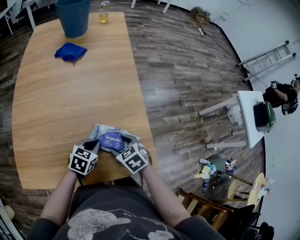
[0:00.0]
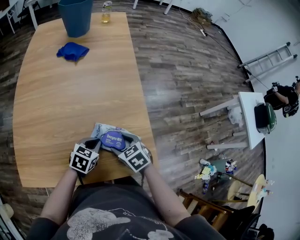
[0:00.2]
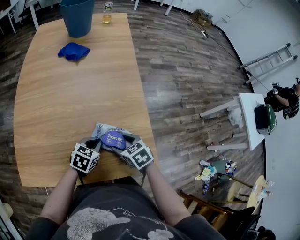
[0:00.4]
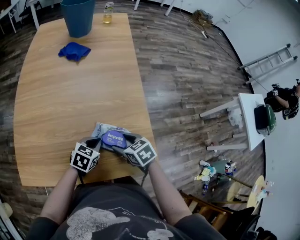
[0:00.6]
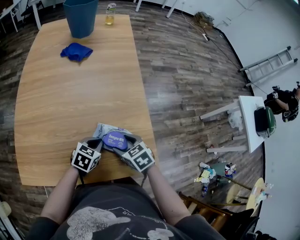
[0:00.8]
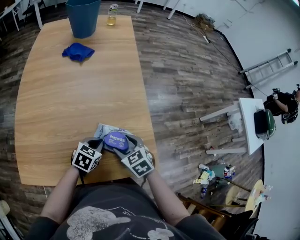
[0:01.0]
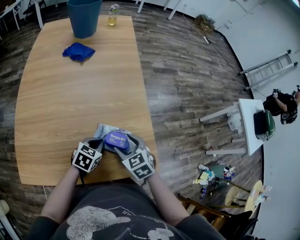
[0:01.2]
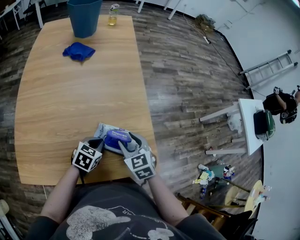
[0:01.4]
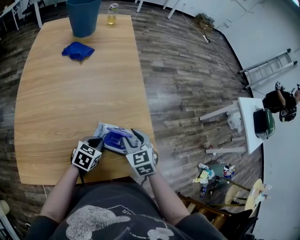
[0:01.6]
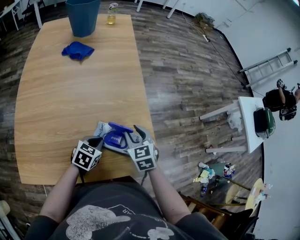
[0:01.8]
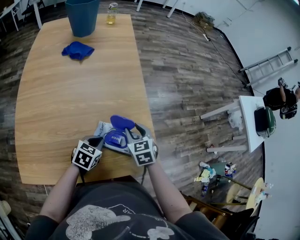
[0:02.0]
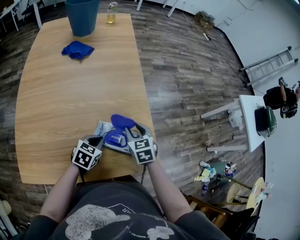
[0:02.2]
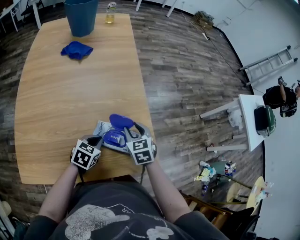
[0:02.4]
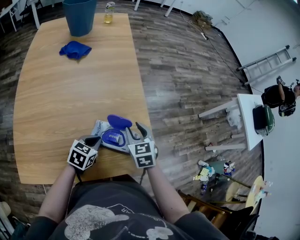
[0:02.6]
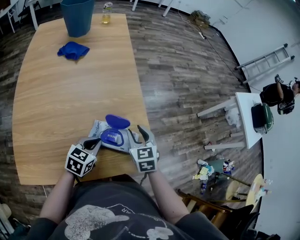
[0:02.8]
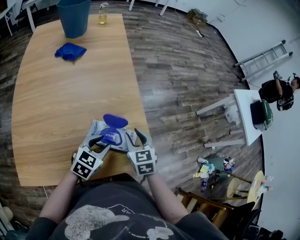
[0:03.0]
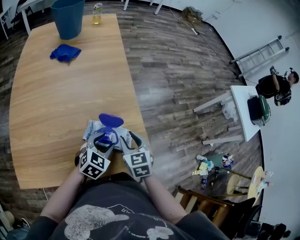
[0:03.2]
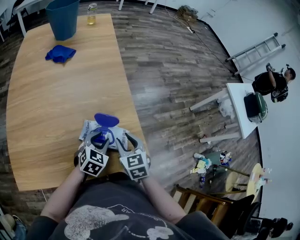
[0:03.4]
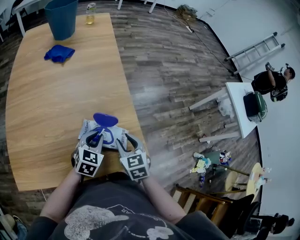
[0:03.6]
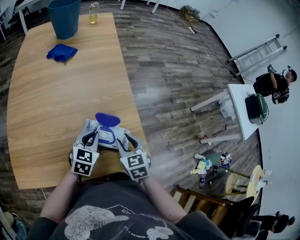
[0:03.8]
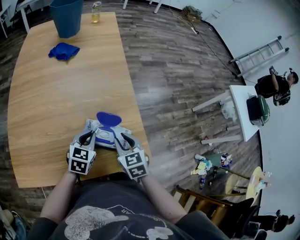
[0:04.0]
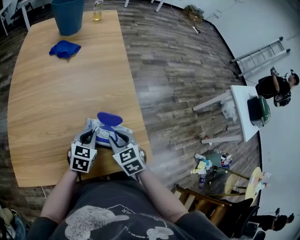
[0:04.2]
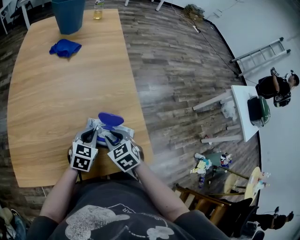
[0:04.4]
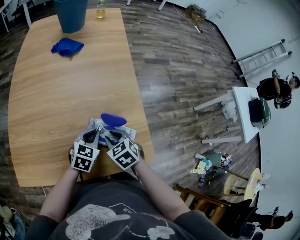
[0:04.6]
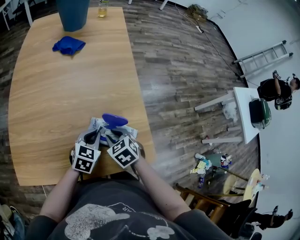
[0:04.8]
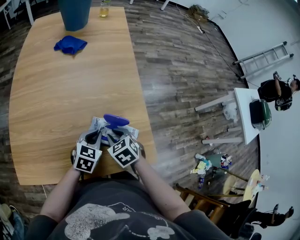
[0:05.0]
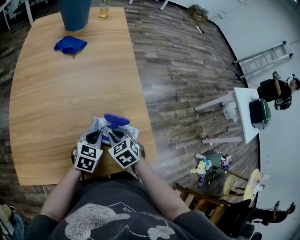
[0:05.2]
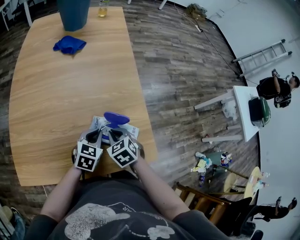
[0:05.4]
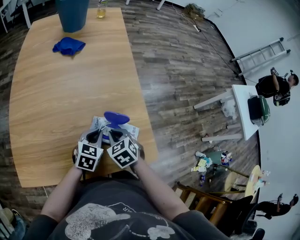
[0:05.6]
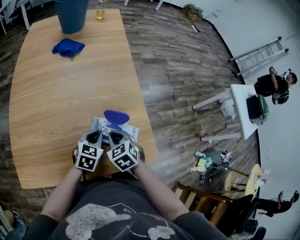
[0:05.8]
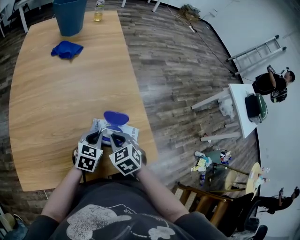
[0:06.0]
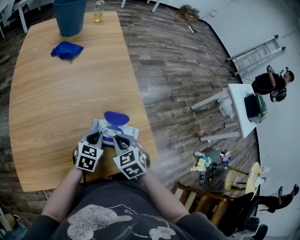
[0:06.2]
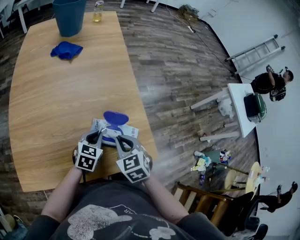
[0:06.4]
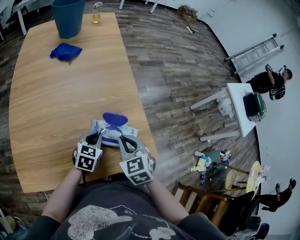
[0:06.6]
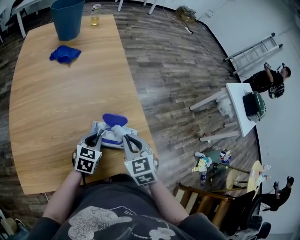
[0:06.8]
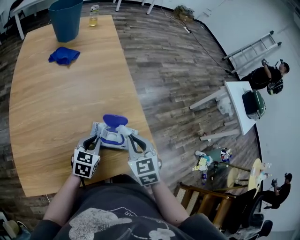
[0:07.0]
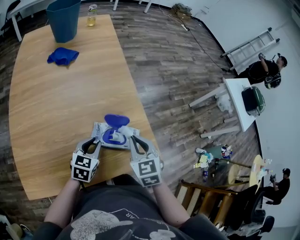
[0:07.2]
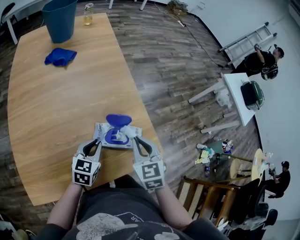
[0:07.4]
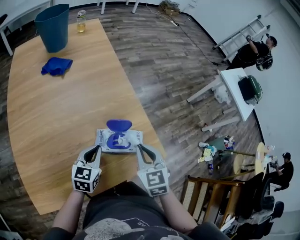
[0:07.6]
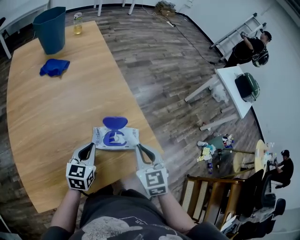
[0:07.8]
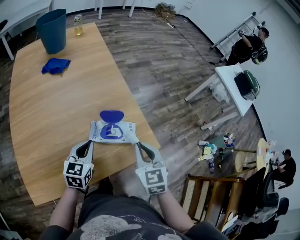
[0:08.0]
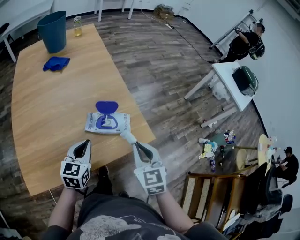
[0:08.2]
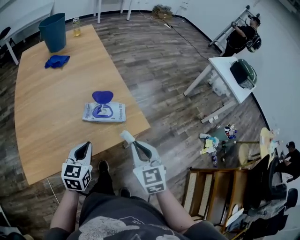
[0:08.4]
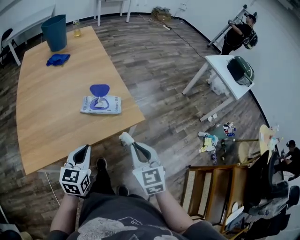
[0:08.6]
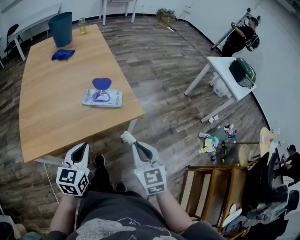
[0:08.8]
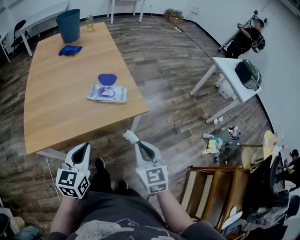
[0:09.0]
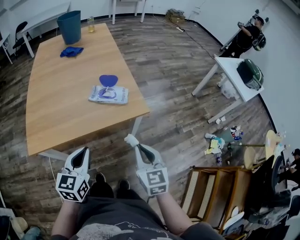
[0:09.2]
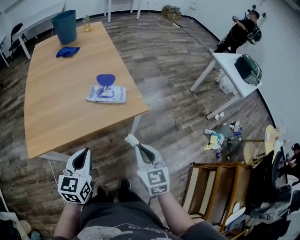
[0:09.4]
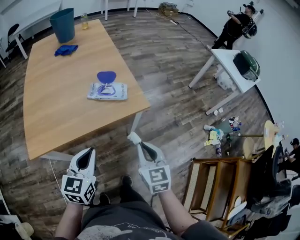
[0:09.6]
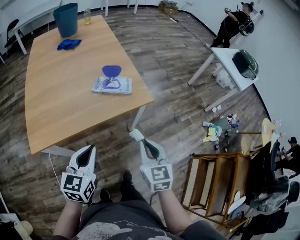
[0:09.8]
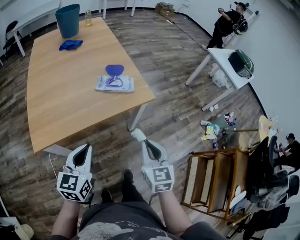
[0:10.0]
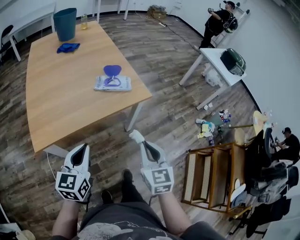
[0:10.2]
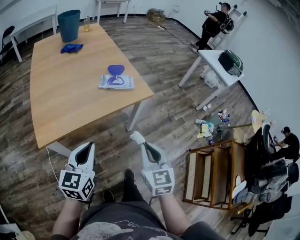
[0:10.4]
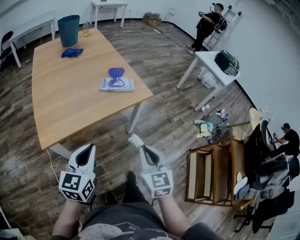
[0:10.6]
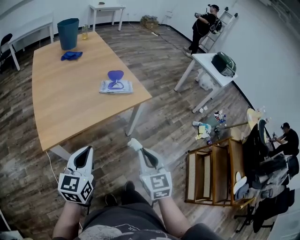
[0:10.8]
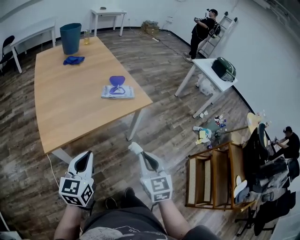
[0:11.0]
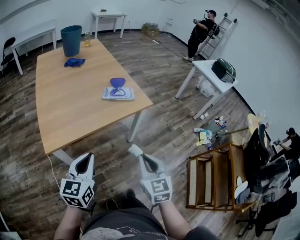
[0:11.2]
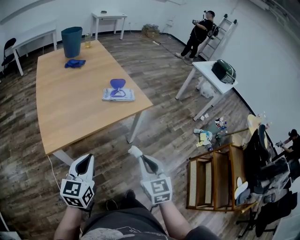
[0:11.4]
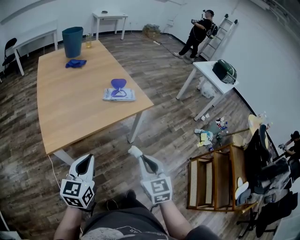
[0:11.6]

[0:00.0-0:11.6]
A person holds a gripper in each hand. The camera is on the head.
0:00.0 to 0:01.4: The right gripper travels upward by some 5 cm, and changes its angle by some 20 degrees.
0:01.4 to 0:02.8: The right gripper changes place by about 5 cm.
0:02.8 to 0:04.4: The left gripper opens, then closes again, while the right gripper is displaced to the left by approximately 10 cm, and swivels some 20 degrees.
0:04.4 to 0:05.8: The grippers stay close to where they were, moving slightly.
0:05.8 to 0:07.2: The right gripper travels upward and to the right by some 10 cm, and changes its angle by some 20 degrees.
0:07.2 to 0:08.8: The right gripper shifts approximately 25 cm backward and to the right, while the left gripper shifts some 25 cm backward and upward, and closes.
0:08.8 to 0:10.2: Both grippers travel together backward and to the left, some 15 cm.
0:10.2 to 0:11.6: The grippers both shift backward by some 5 cm.

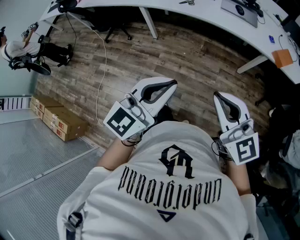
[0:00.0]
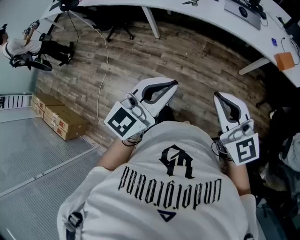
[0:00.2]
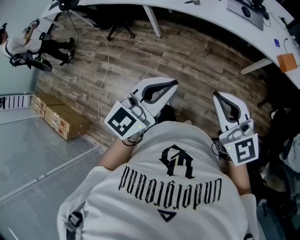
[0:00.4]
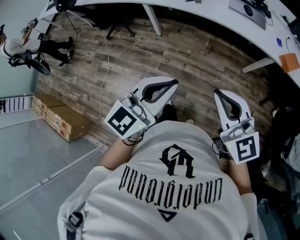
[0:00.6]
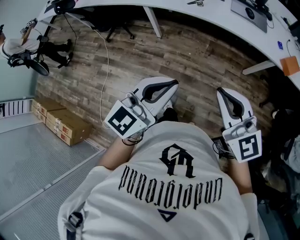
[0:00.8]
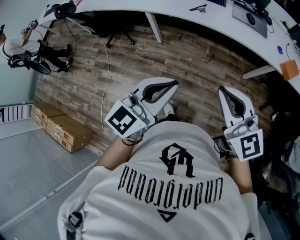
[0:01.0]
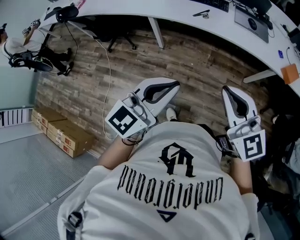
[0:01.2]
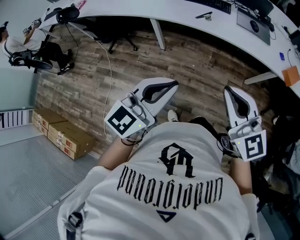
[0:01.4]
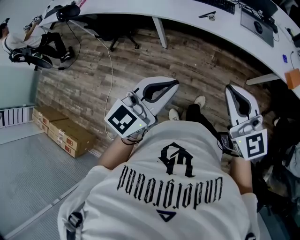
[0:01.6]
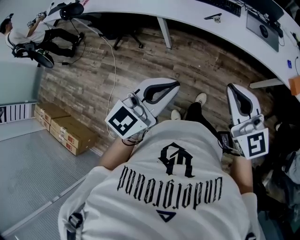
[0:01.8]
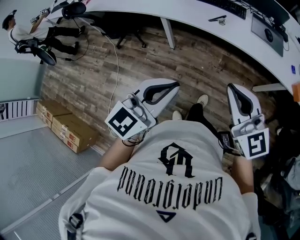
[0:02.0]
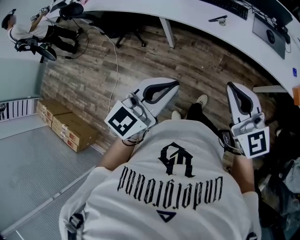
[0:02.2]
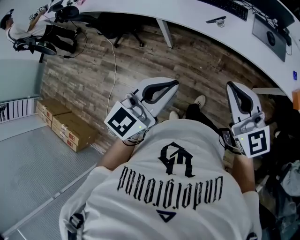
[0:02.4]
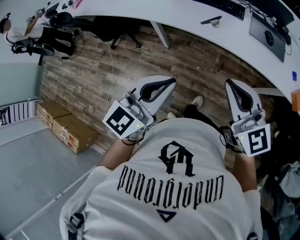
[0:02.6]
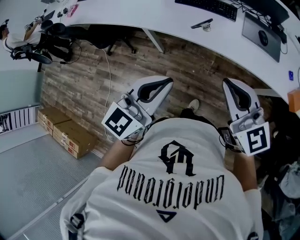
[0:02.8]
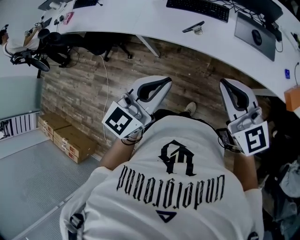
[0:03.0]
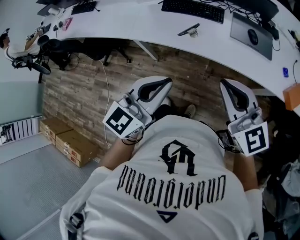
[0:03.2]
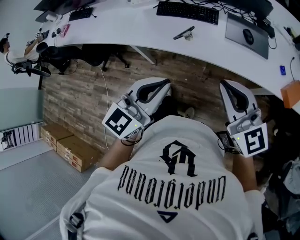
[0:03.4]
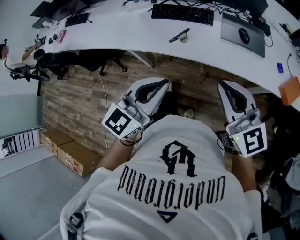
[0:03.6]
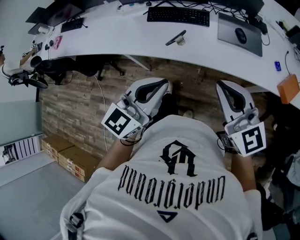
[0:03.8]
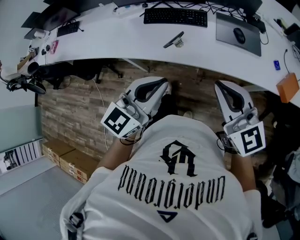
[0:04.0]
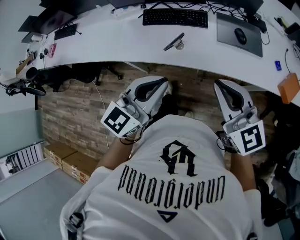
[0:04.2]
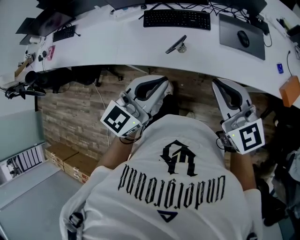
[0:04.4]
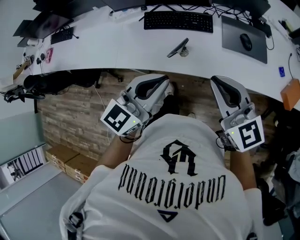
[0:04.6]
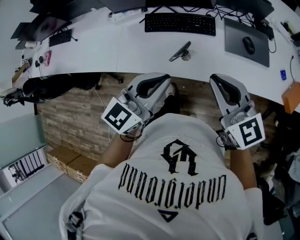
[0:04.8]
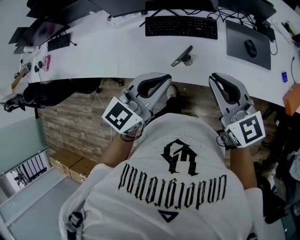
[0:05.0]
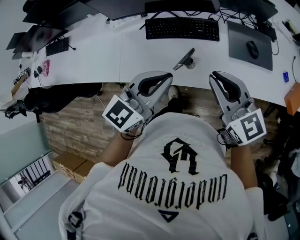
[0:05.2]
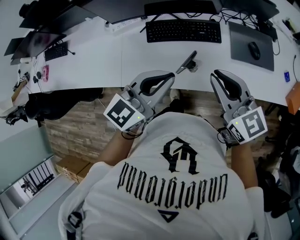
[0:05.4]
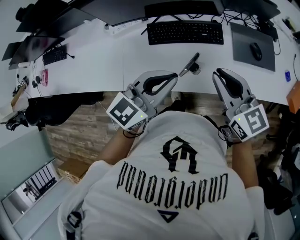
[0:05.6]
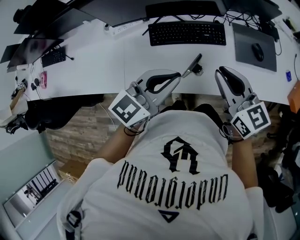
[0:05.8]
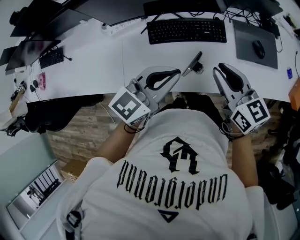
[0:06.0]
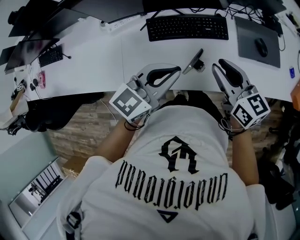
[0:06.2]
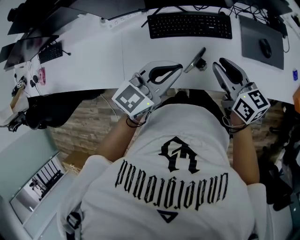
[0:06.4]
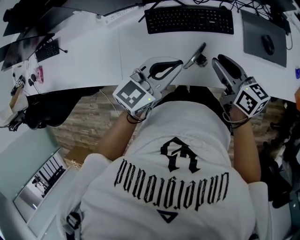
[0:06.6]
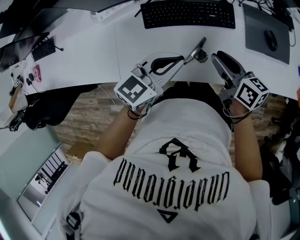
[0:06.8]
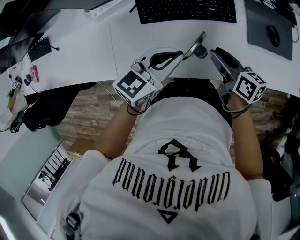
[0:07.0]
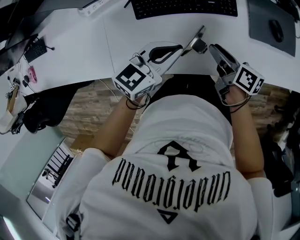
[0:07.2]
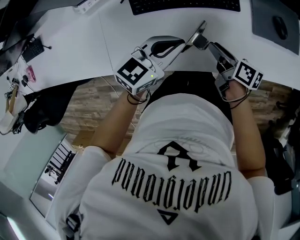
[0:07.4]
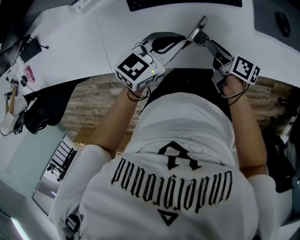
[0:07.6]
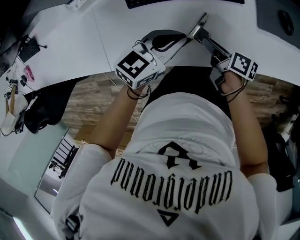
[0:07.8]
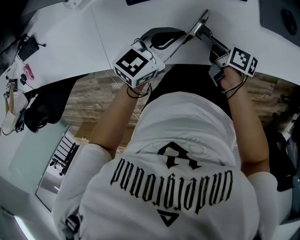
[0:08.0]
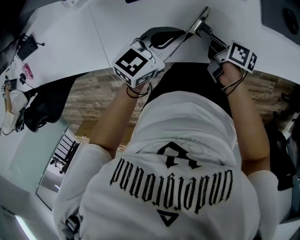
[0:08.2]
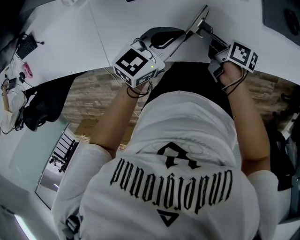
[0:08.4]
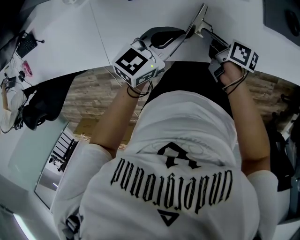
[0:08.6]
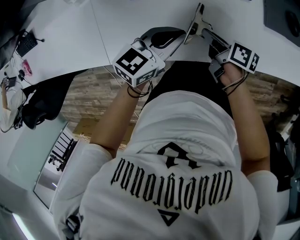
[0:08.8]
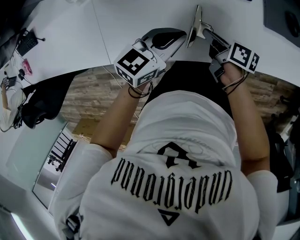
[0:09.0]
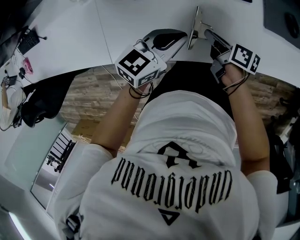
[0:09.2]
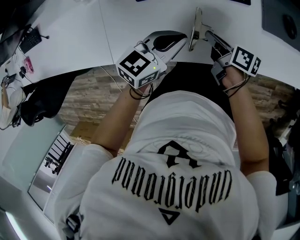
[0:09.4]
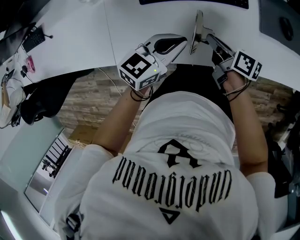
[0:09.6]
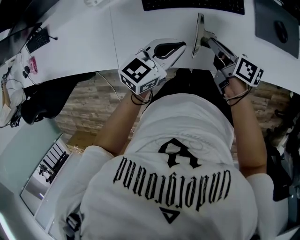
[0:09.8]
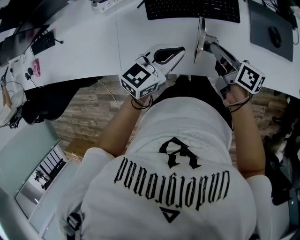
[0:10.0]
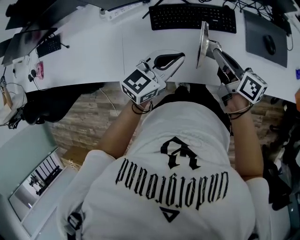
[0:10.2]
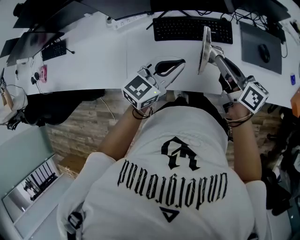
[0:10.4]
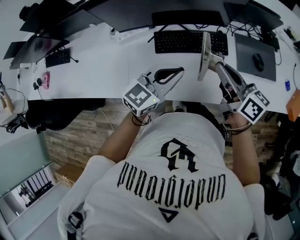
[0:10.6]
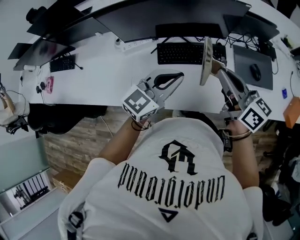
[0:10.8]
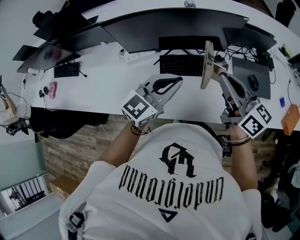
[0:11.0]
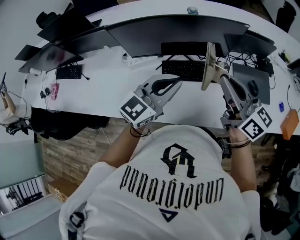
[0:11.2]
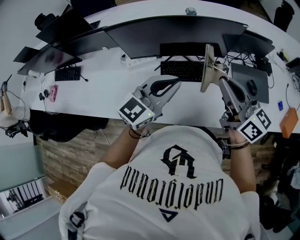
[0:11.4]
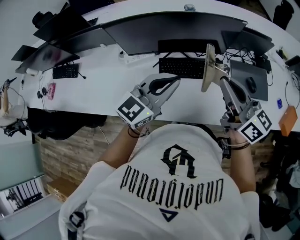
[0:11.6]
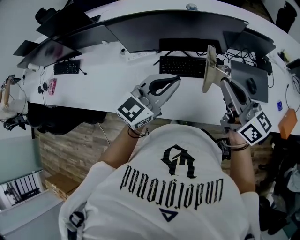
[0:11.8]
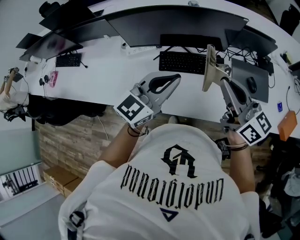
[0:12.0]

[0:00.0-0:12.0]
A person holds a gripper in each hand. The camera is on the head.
0:00.0 to 0:01.6: The left gripper is displaced to the left and forward by roughly 25 cm; the right gripper is displaced forward and to the left by about 25 cm.
0:01.6 to 0:03.0: Both grippers travel together forward and to the right, about 30 cm.
0:03.0 to 0:04.4: The grippers both shift forward by about 15 cm.
0:04.4 to 0:06.0: The right gripper is displaced forward, to the left and downward by roughly 25 cm, and turns by about 30 degrees. The left gripper goes some 25 cm forward and to the left.
0:06.0 to 0:07.6: Both grippers travel together downward, approximately 25 cm. The right gripper rolls clockwise, seen from behind, by about 60 degrees.
0:07.6 to 0:09.0: The right gripper closes up.
0:09.0 to 0:10.4: The right gripper travels upward by some 30 cm, and turns by approximately 40 degrees, while the left gripper is displaced upward by some 15 cm, and rotates about 20 degrees.
0:10.4 to 0:12.0: Both grippers travel together upward, about 15 cm. The right gripper turns by some 30 degrees.
